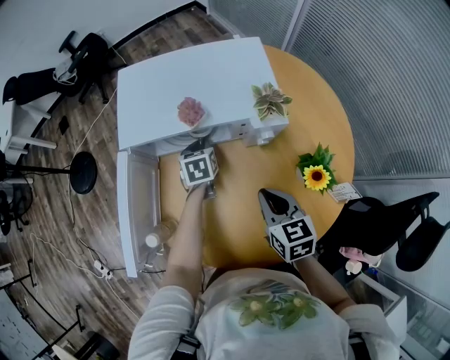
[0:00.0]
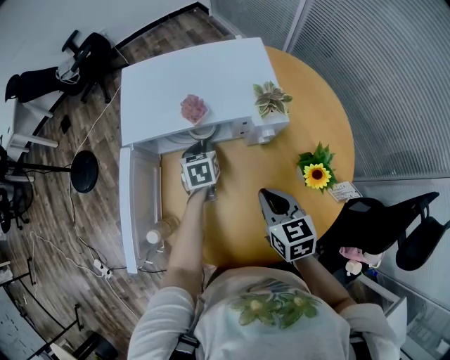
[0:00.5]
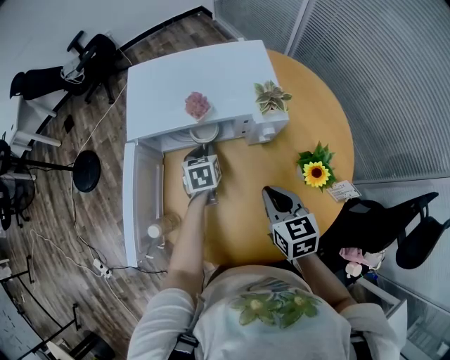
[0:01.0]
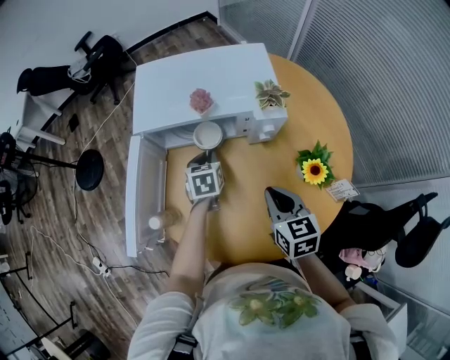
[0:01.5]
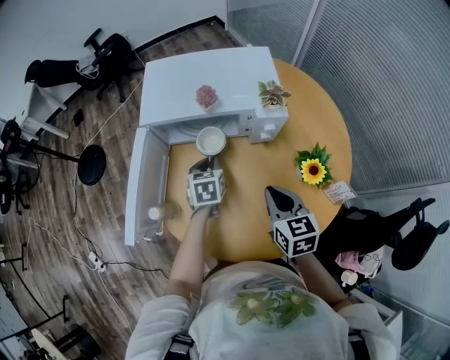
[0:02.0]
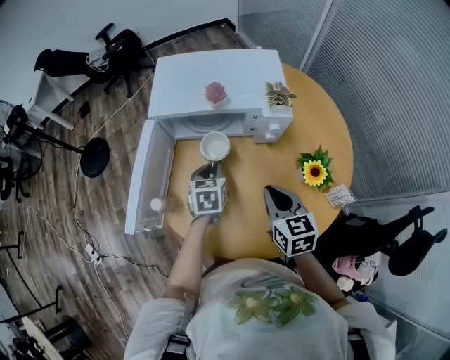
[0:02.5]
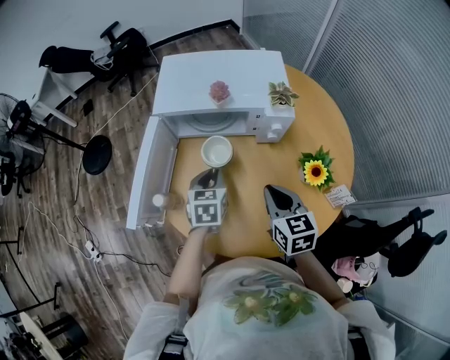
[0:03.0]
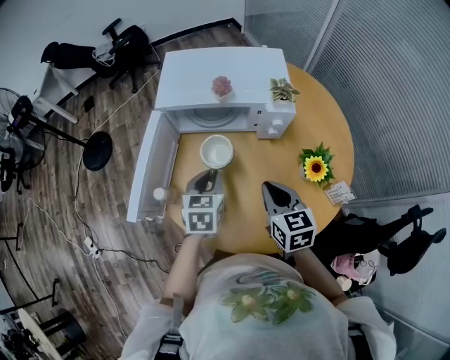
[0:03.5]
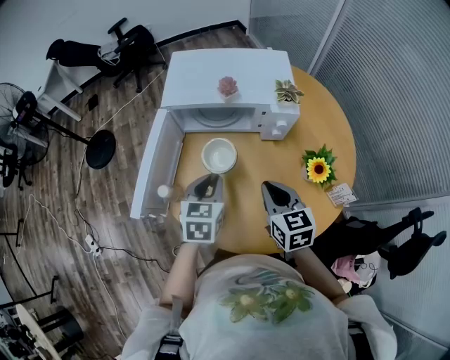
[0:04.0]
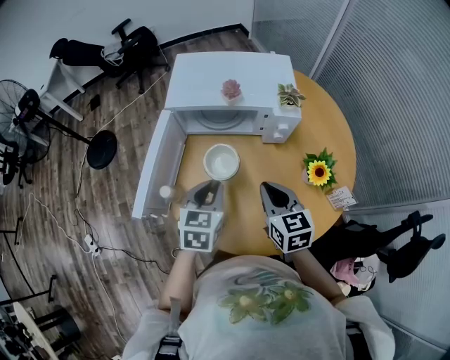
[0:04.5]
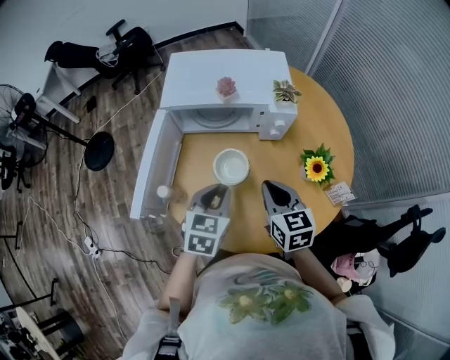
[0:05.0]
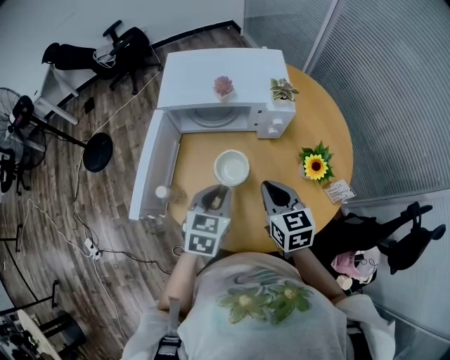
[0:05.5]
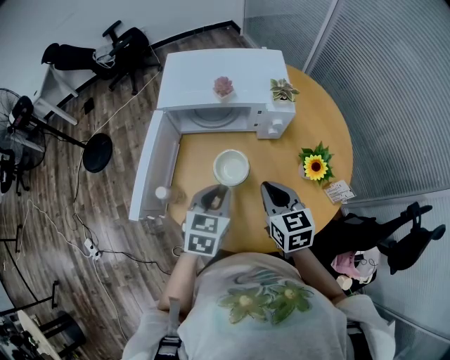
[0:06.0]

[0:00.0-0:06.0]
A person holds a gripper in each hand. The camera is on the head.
0:00.0 to 0:02.0: The right gripper moves some 5 cm. The left gripper is displaced backward by about 10 cm.
0:02.0 to 0:04.0: The left gripper goes roughly 15 cm backward and upward.
0:04.0 to 0:06.0: The grippers stay close to where they were, moving slightly.

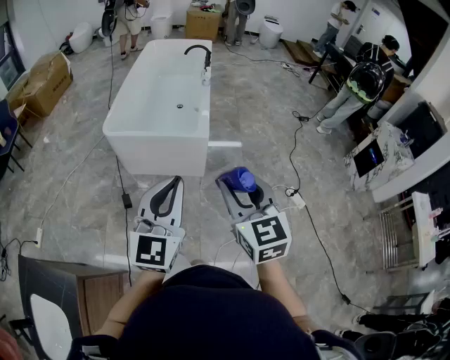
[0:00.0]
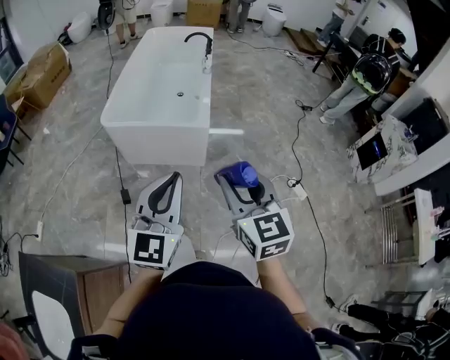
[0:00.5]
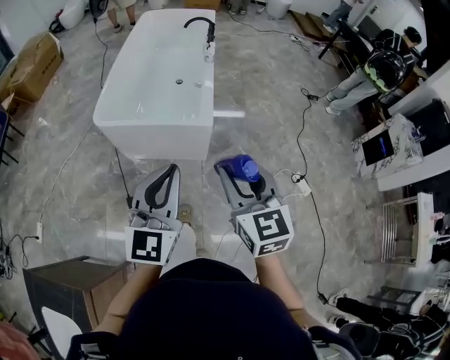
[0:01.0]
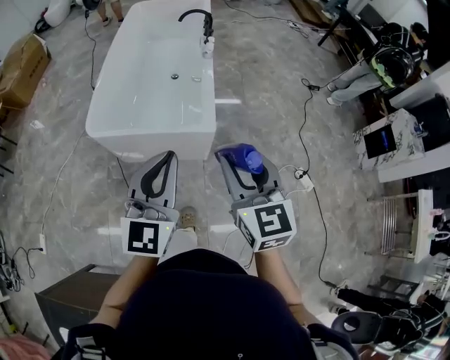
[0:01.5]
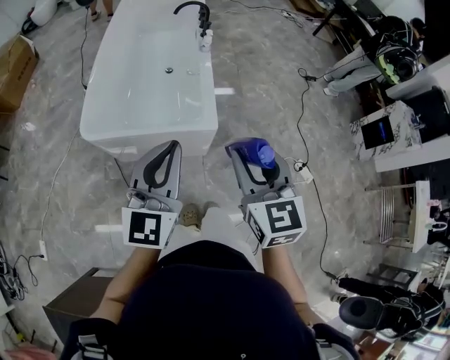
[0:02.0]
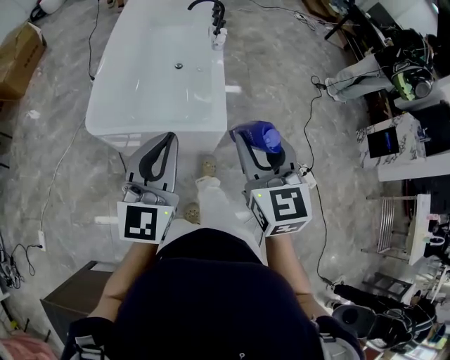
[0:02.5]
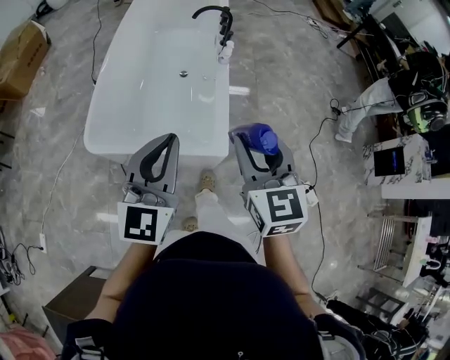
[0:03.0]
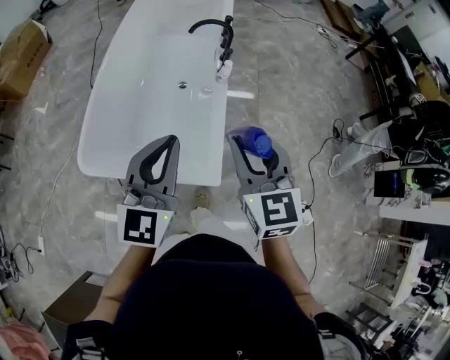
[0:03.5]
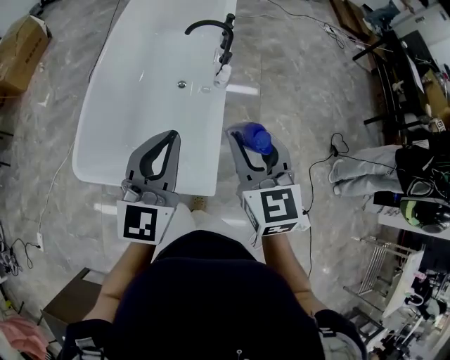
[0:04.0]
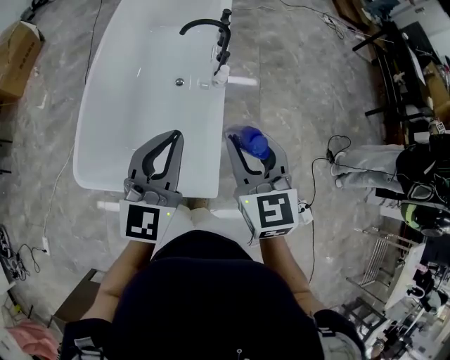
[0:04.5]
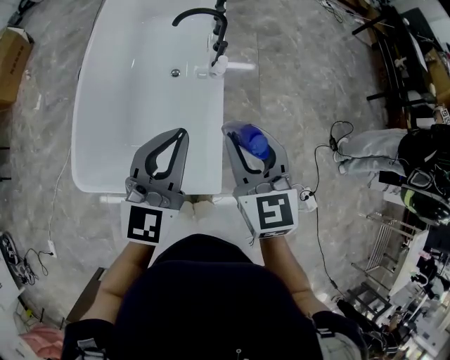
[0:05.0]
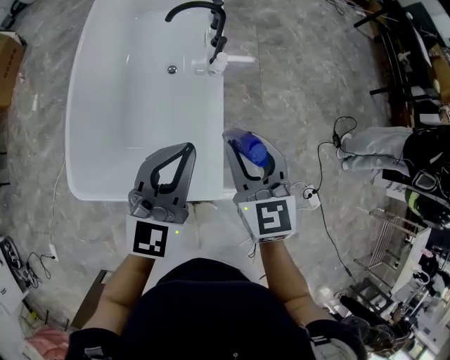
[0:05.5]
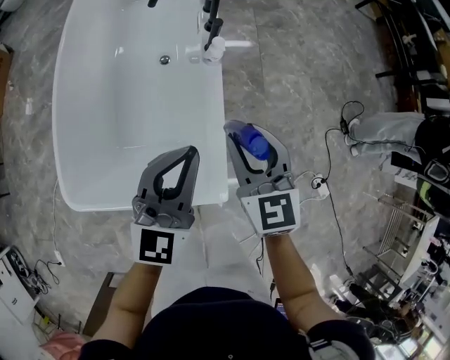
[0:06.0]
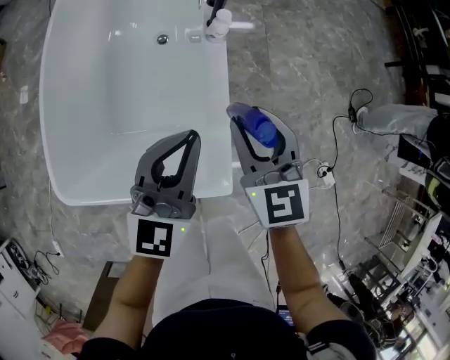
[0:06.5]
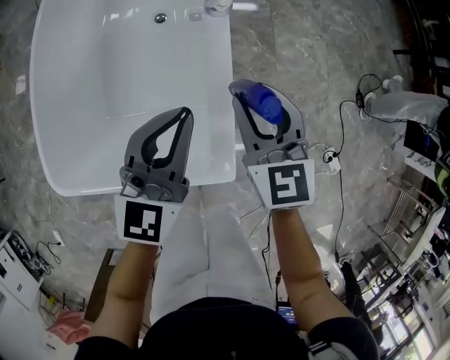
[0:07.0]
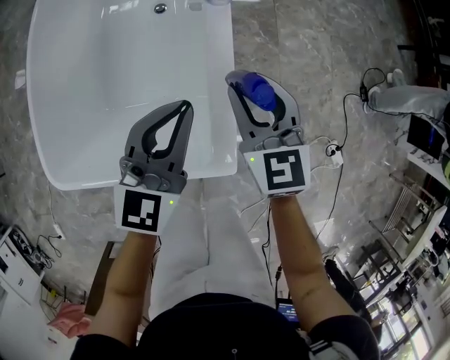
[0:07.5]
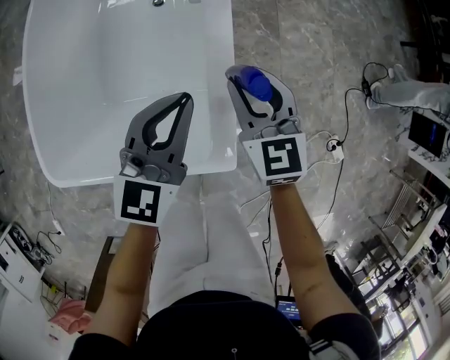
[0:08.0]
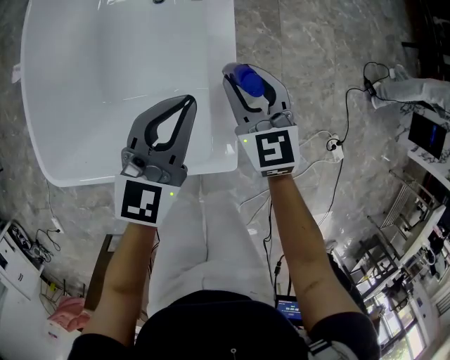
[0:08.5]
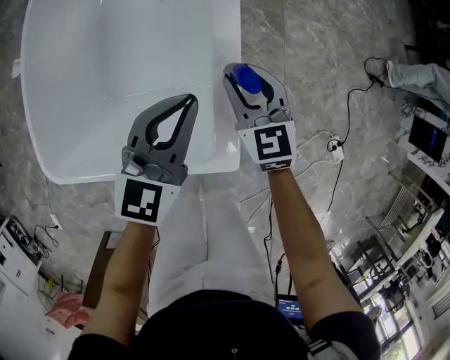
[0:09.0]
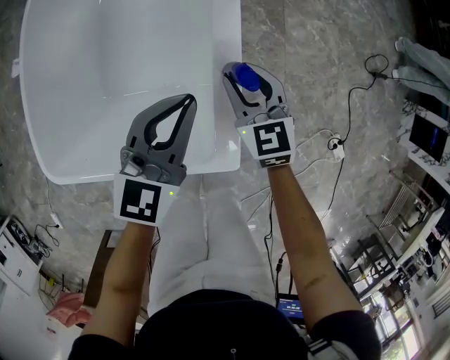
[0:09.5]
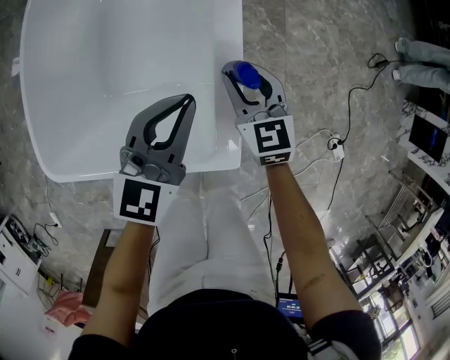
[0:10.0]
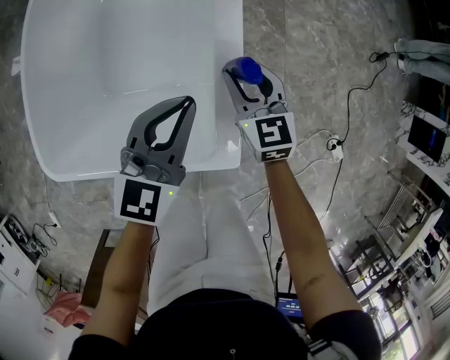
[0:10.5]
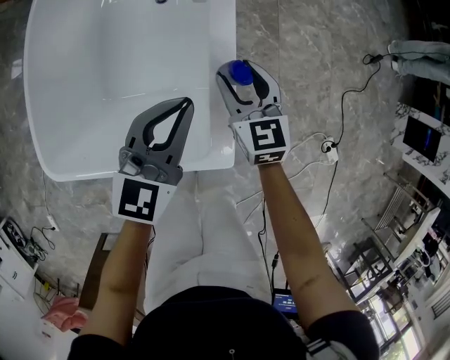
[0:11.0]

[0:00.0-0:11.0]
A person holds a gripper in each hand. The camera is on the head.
0:00.0 to 0:02.0: Both grippers travel together forward, roughly 30 cm.
0:02.0 to 0:03.5: The grippers both shift forward by some 30 cm.
0:03.5 to 0:05.5: Both grippers travel together forward and downward, roughly 15 cm.
0:05.5 to 0:07.5: Both grippers move downward, about 20 cm.
0:07.5 to 0:09.0: The right gripper heads downward, covering some 10 cm.
0:09.0 to 0:11.0: The grippers stay close to where they were, moving slightly.

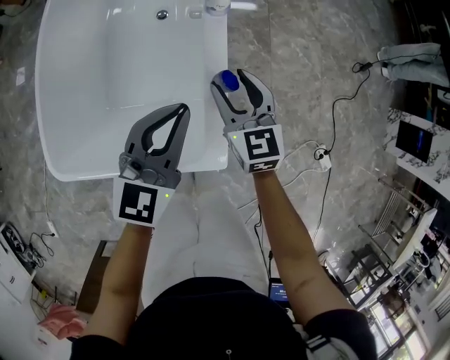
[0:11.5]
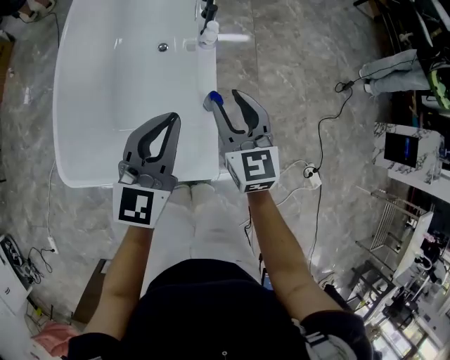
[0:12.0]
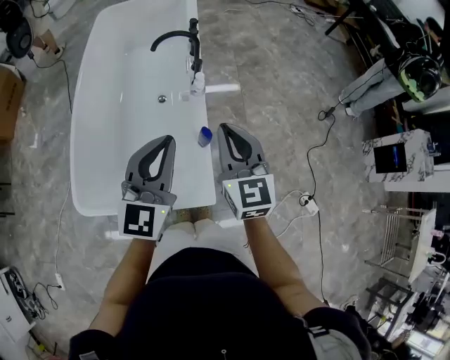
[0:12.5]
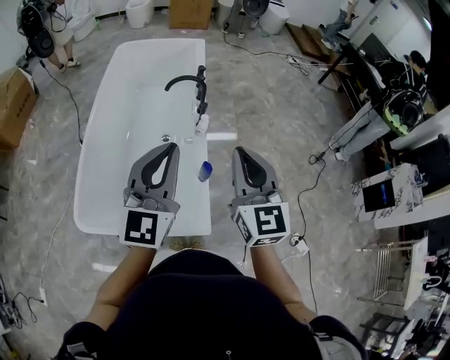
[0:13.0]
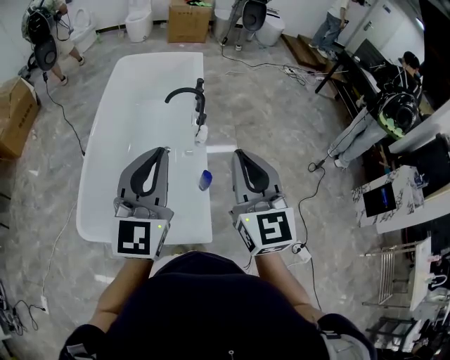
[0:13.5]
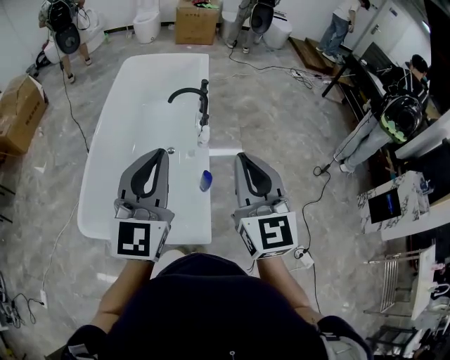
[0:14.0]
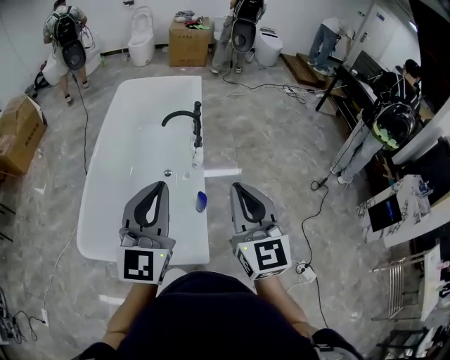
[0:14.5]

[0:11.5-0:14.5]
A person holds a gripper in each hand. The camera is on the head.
0:11.5 to 0:13.0: Both grippers travel together upward, about 35 cm. The left gripper changes its angle by roughly 30 degrees. Meanwhile the right gripper turns by some 30 degrees, and closes.
0:13.0 to 0:14.5: The left gripper changes place by about 5 cm, while the right gripper shifts by roughly 5 cm.

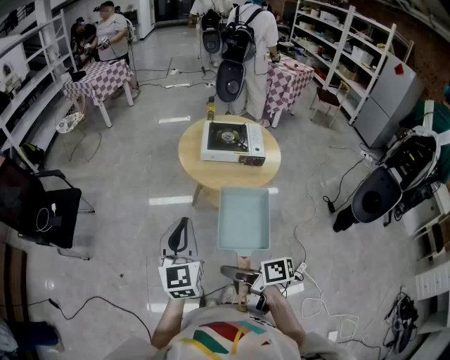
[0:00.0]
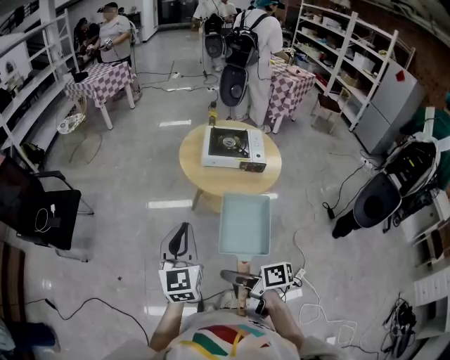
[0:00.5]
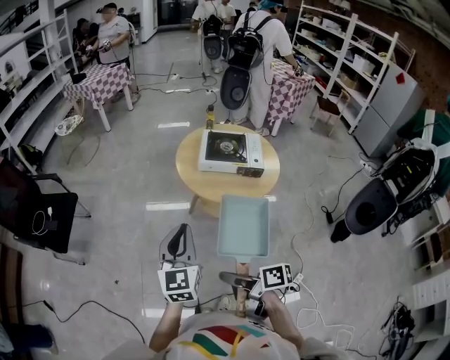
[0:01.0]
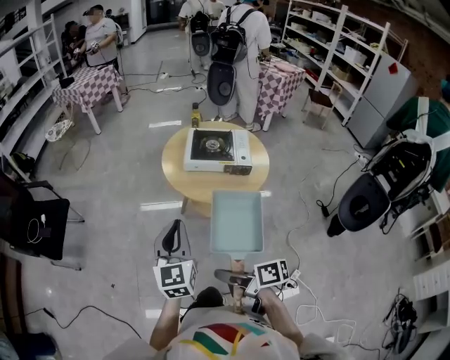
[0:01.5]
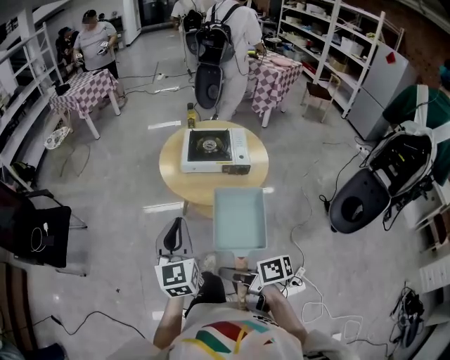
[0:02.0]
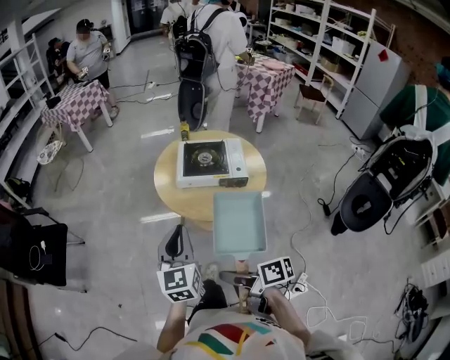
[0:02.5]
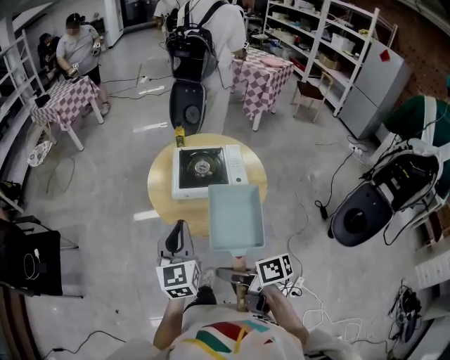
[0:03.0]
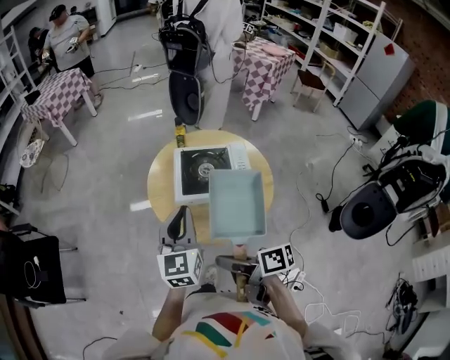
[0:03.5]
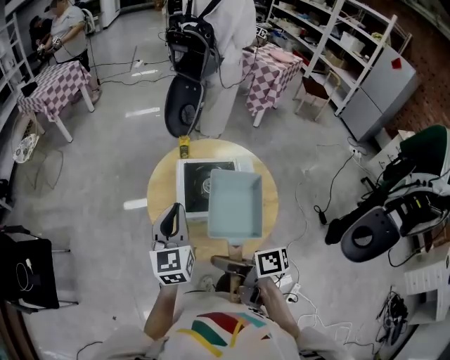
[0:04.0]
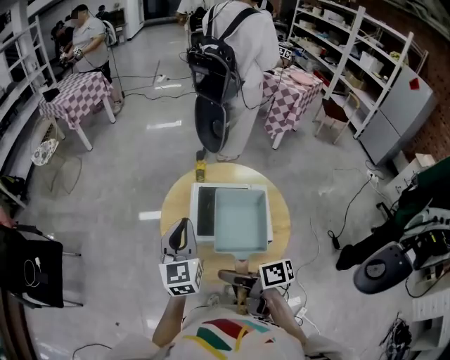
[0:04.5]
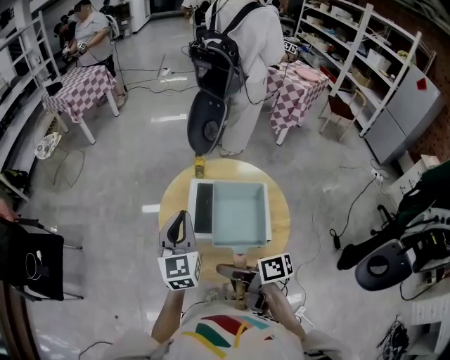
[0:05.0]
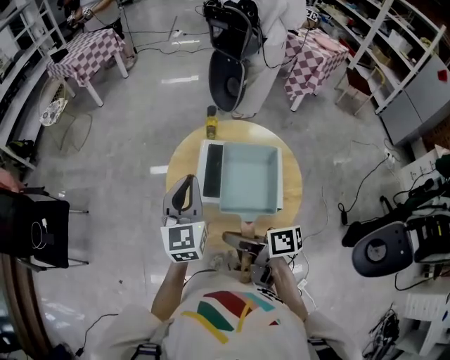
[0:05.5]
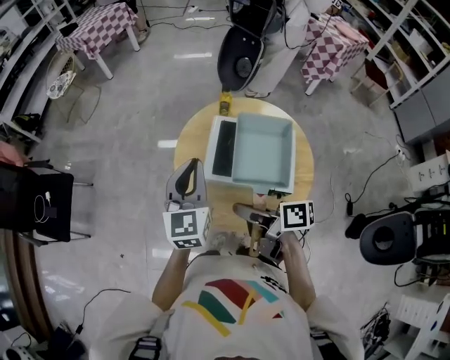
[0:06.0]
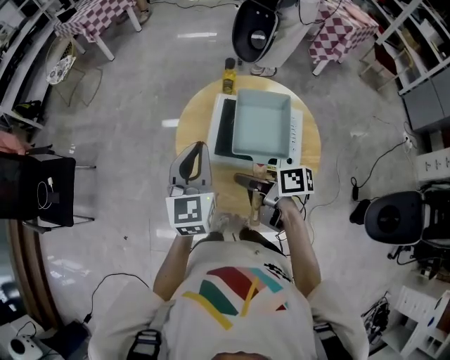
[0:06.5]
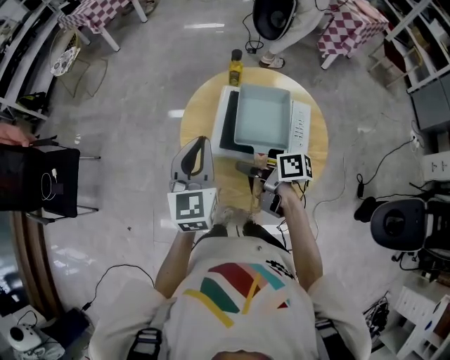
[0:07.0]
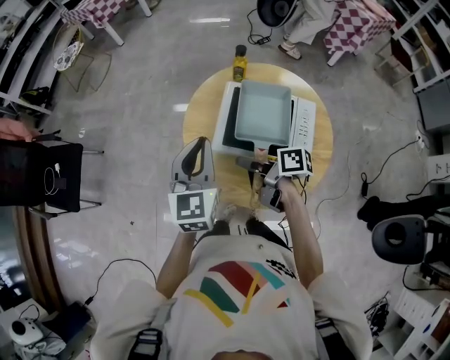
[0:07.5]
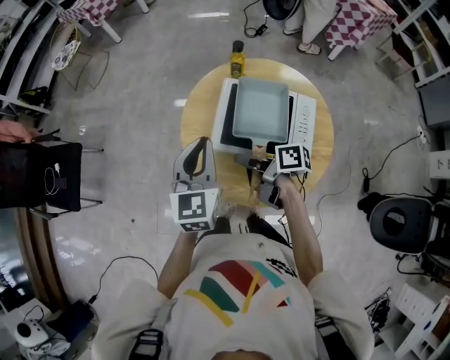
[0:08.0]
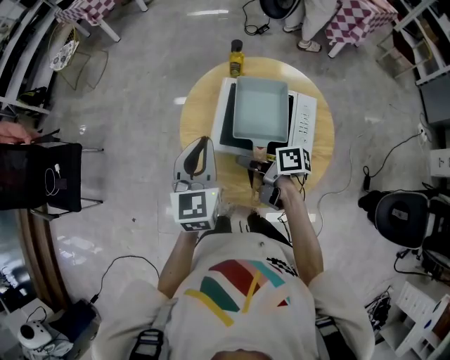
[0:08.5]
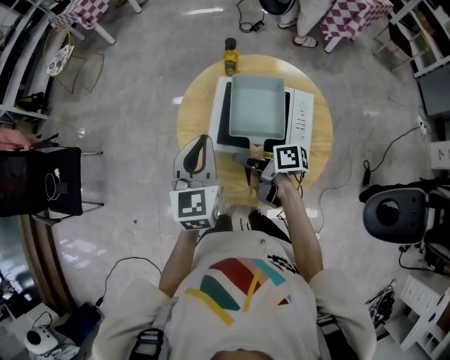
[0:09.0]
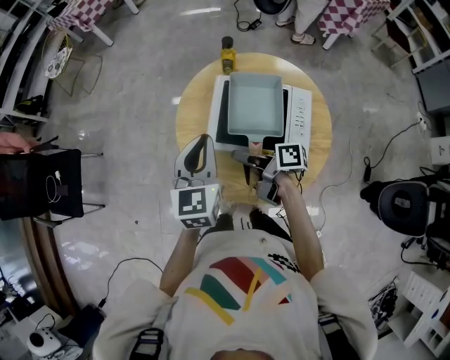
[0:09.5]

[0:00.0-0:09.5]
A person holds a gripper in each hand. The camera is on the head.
0:00.0 to 0:02.0: The left gripper moves approximately 10 cm.
0:02.0 to 0:04.0: The left gripper moves some 35 cm.
0:05.5 to 0:07.5: The left gripper travels downward by about 5 cm.
